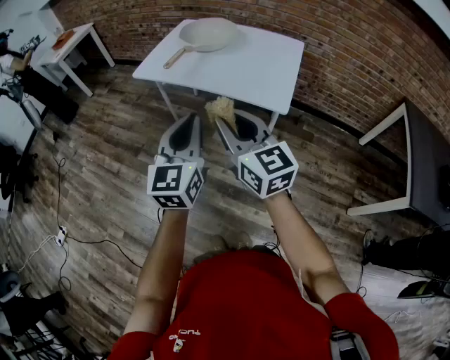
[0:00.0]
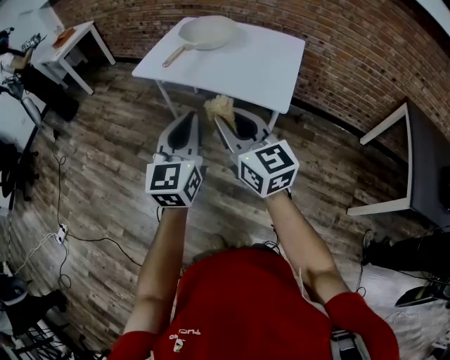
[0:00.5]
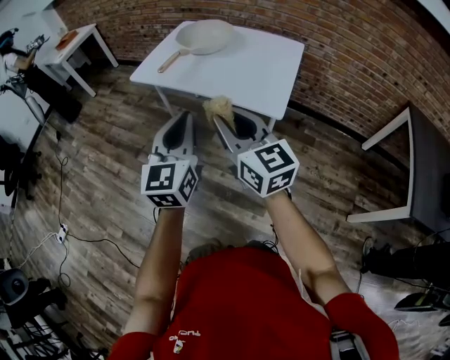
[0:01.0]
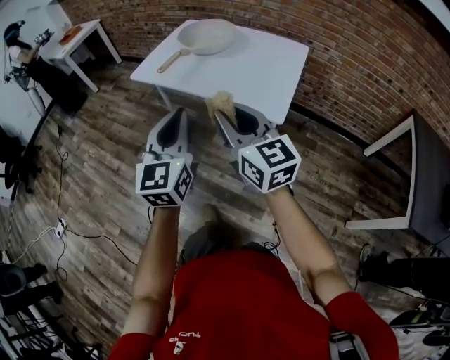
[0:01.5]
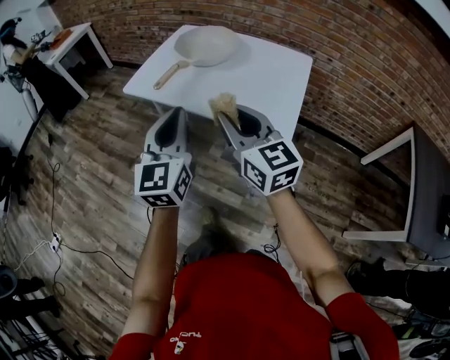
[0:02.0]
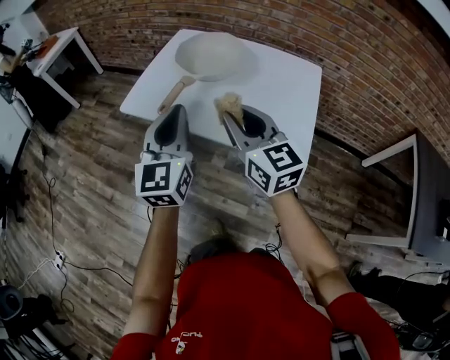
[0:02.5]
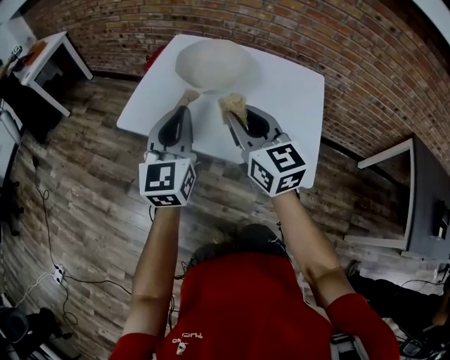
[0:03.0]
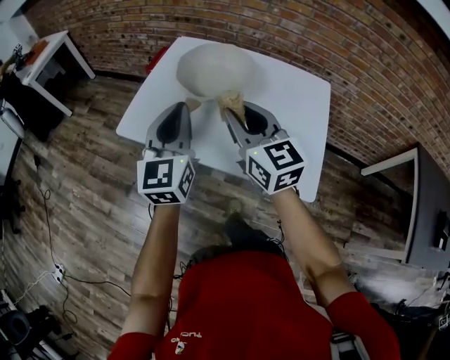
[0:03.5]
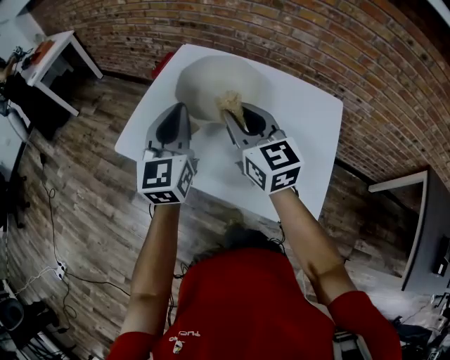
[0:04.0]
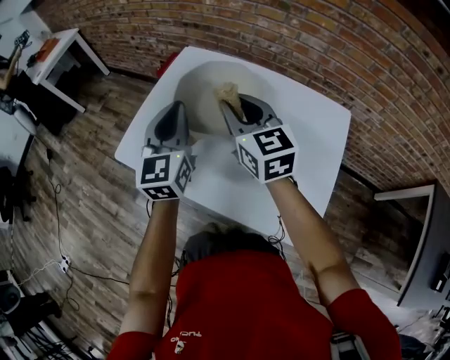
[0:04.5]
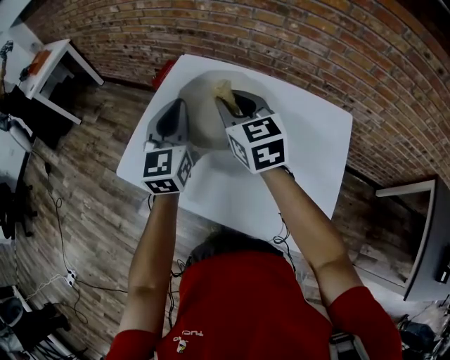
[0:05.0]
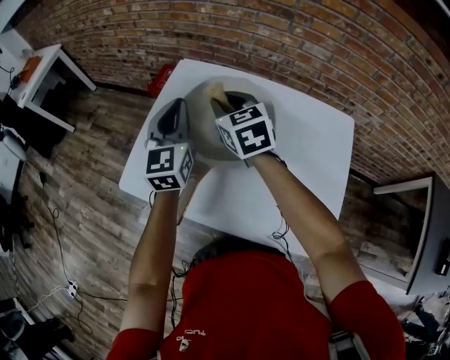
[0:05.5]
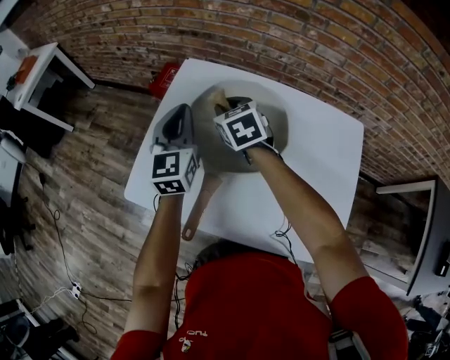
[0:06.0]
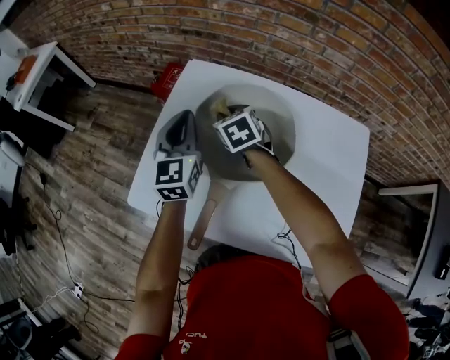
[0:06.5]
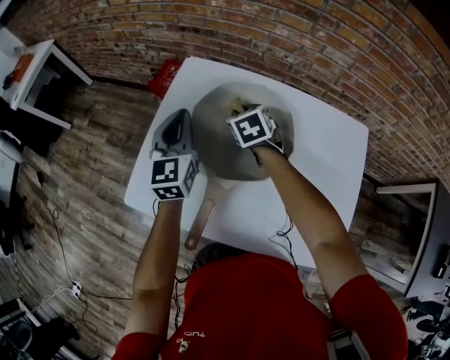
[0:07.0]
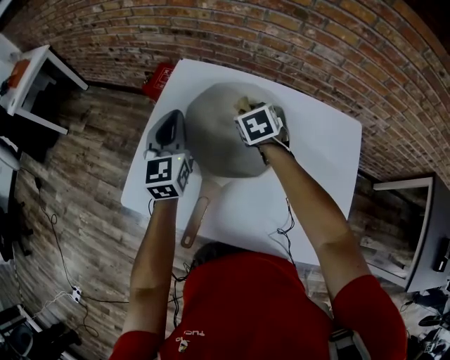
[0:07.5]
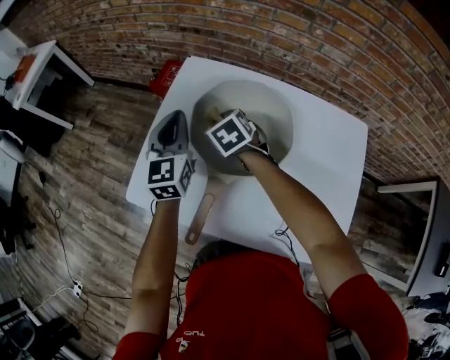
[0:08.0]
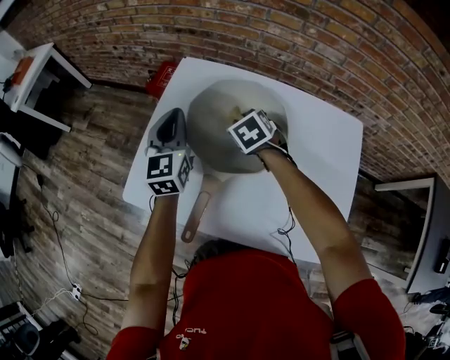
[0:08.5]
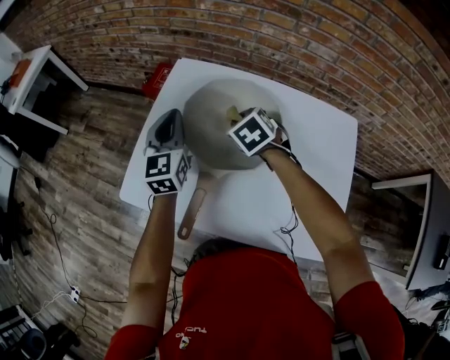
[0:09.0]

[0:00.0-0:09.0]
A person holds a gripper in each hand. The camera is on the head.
0:00.0 to 0:02.0: The right gripper shifts approximately 15 cm forward and to the right. Meanwhile the left gripper goes roughly 15 cm forward.
0:02.0 to 0:04.5: The pair of grippers is taken forward, approximately 40 cm.
0:04.5 to 0:07.0: The right gripper shifts some 30 cm downward and forward, and tips its fingers downward by approximately 40 degrees, while the left gripper heads forward and downward, covering about 20 cm.
0:07.0 to 0:09.0: The right gripper goes left and right, some 10 cm each way, reversing 2 times.

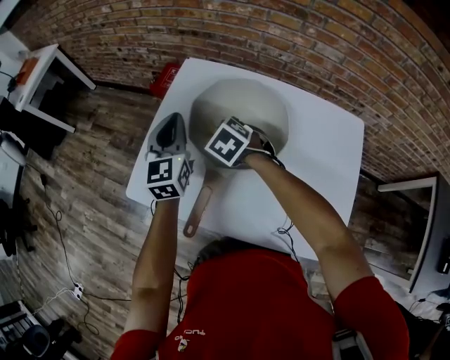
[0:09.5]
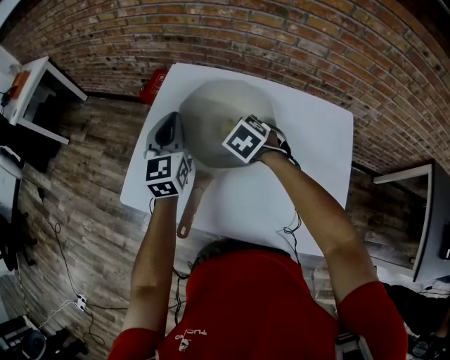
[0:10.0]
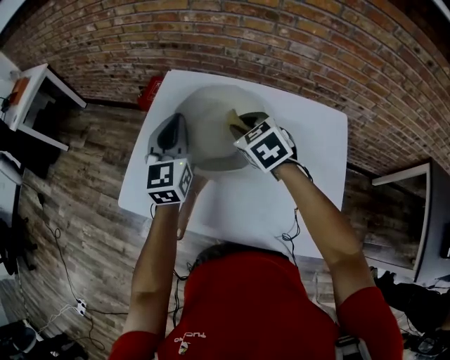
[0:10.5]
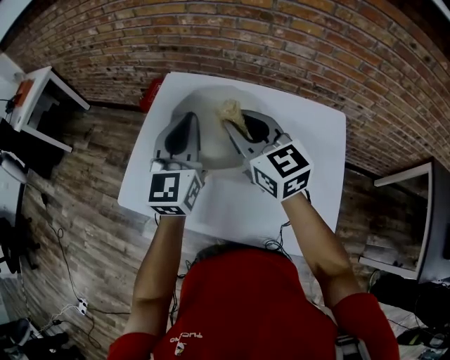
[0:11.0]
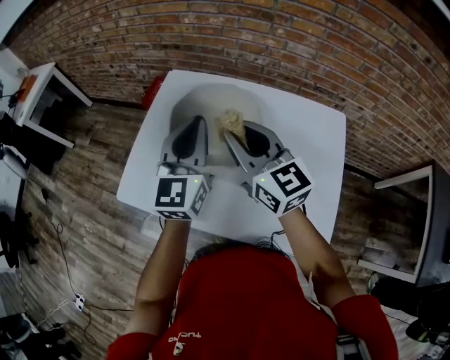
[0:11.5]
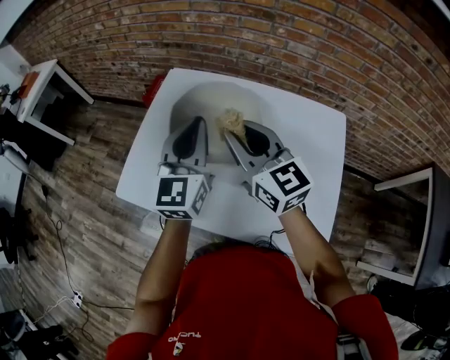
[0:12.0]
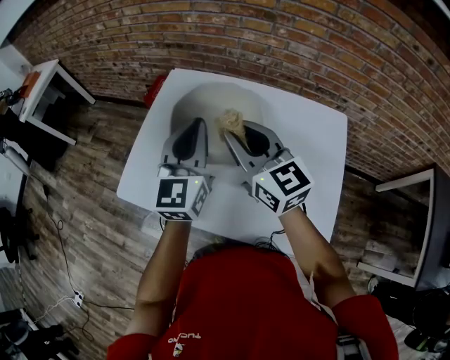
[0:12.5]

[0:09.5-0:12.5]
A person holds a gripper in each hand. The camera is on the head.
0:09.5 to 0:11.0: The left gripper travels to the right, upward and backward by about 15 cm. The right gripper goes about 25 cm upward and to the right, and points its fingers roughly 50 degrees further upward.
0:11.0 to 0:12.5: The grippers stay close to where they were, moving slightly.

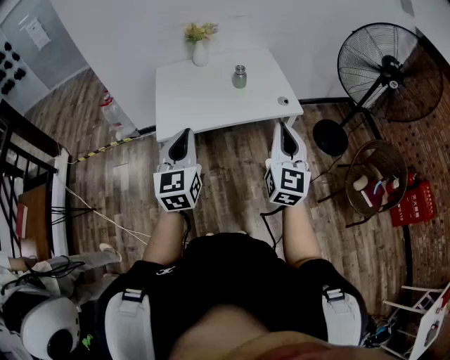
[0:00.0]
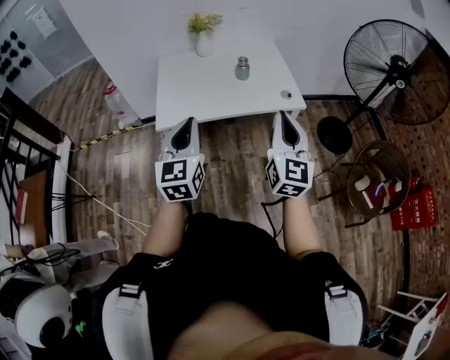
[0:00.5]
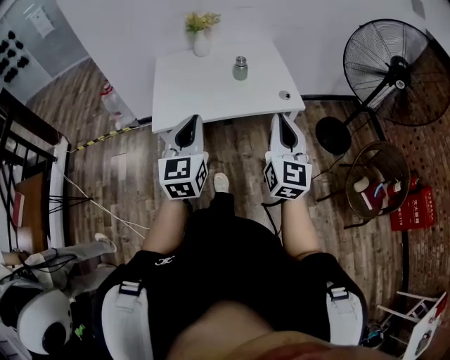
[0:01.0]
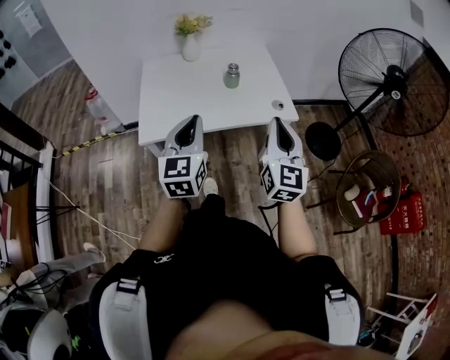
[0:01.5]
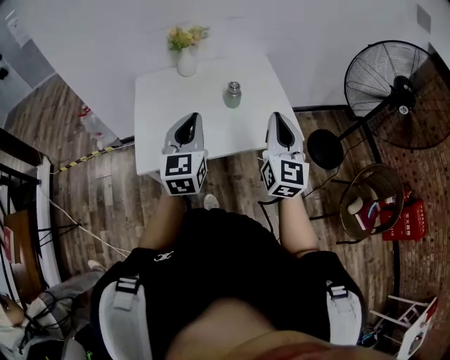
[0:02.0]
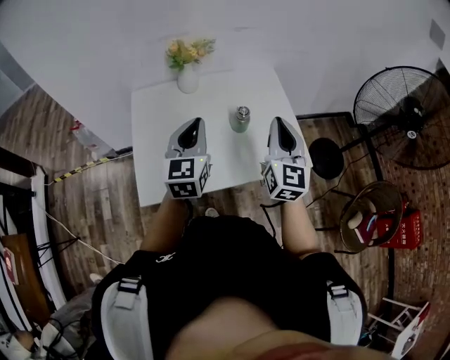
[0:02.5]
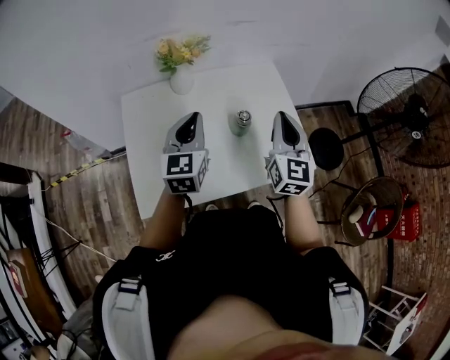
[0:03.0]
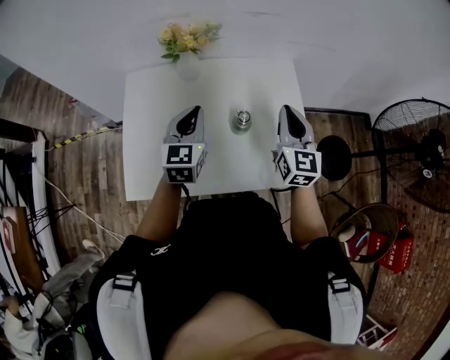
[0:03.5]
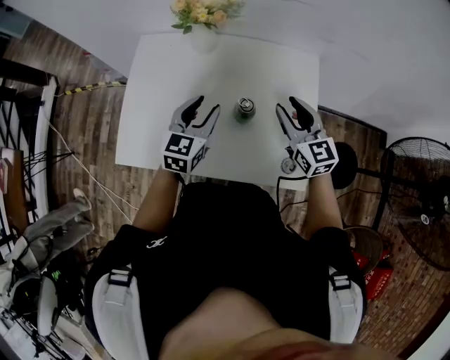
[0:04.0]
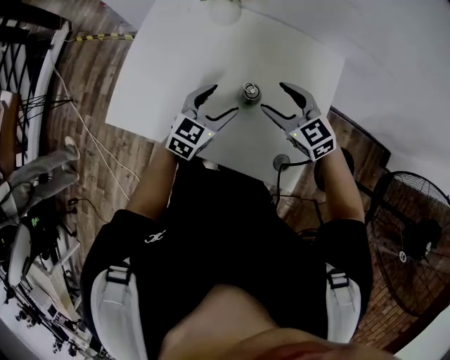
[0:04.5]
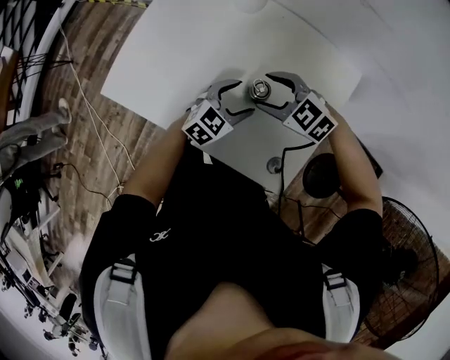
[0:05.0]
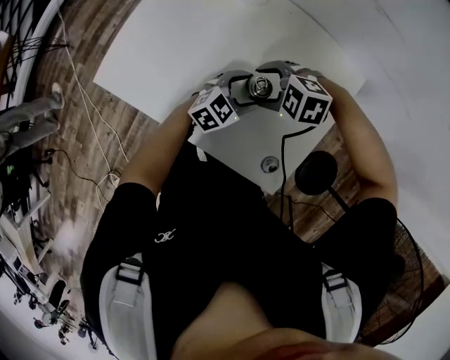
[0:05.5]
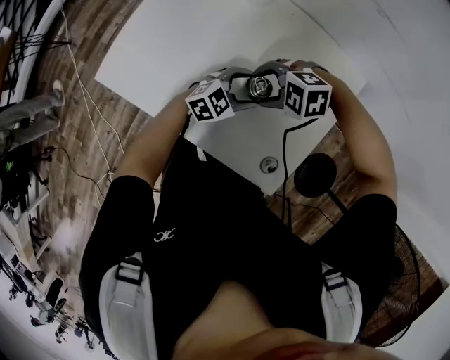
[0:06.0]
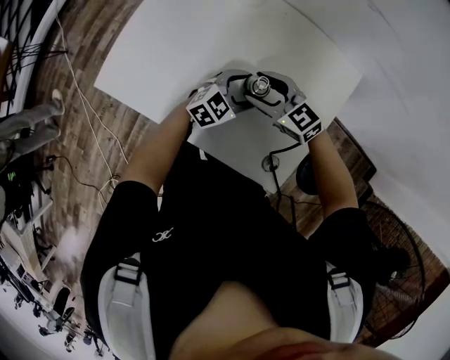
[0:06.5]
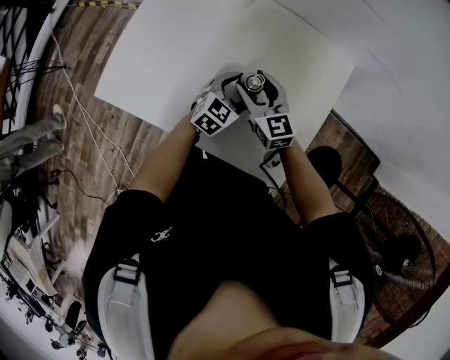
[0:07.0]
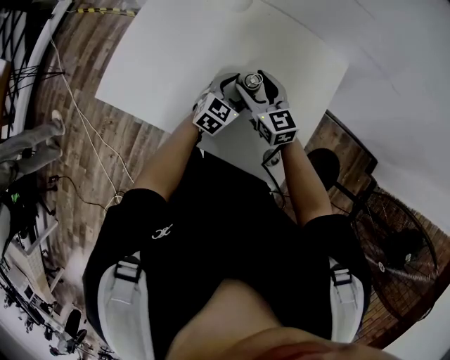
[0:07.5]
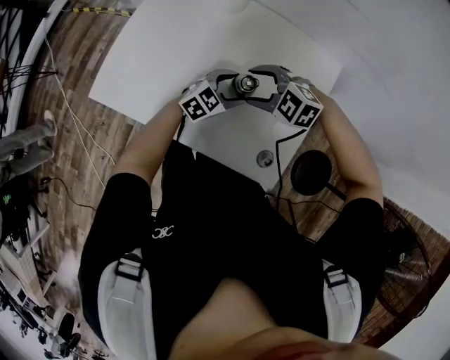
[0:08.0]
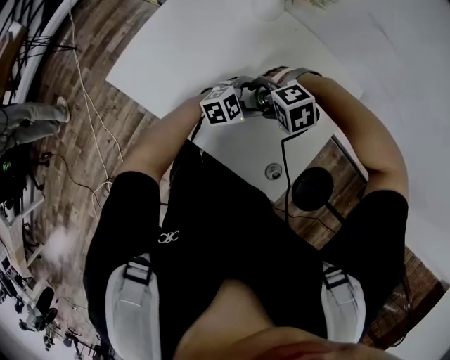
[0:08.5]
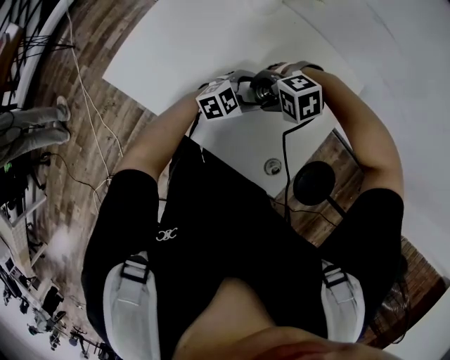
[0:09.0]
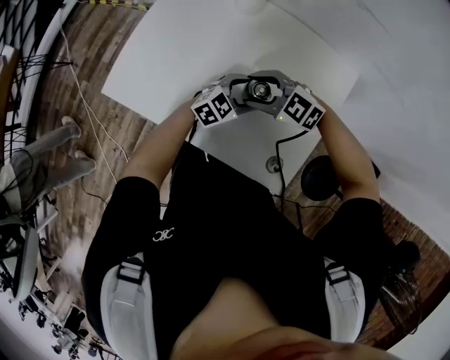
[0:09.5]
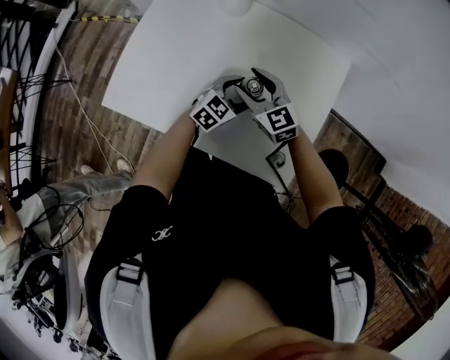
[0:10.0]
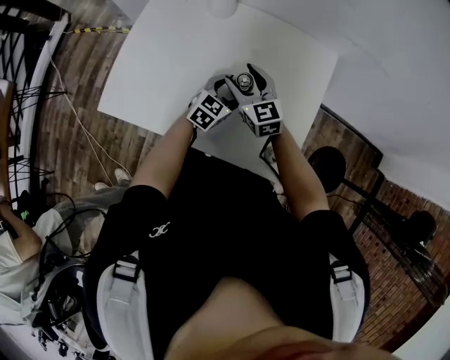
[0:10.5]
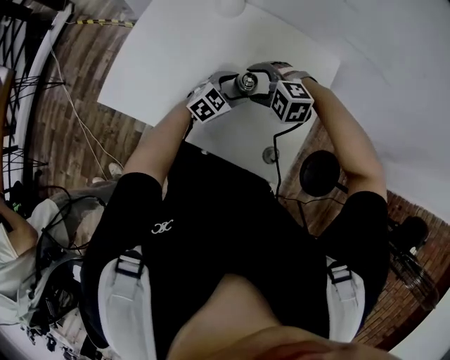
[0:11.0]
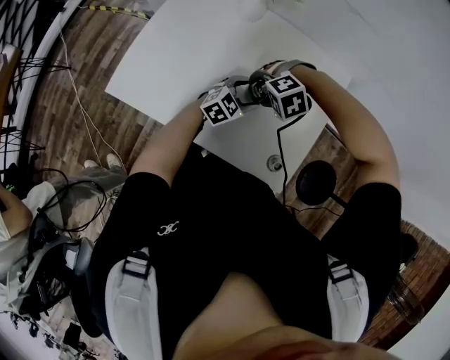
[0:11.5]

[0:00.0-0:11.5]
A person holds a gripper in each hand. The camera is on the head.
0:00.0 to 0:02.0: The grippers both shift forward by some 25 cm.
0:02.0 to 0:04.0: The left gripper ends up about 30 cm from where it was, and opens up, while the right gripper ends up roughly 35 cm from where it was, swivels about 50 degrees, and opens its fingers.
0:04.0 to 0:06.0: The two grippers go approximately 15 cm downward. The right gripper tilts its fingers about 50 degrees downward, and opens its fingers. Meanwhile the left gripper changes its angle by some 30 degrees, and opens its fingers.
0:06.0 to 0:07.5: The left gripper rotates approximately 20 degrees. Meanwhile the right gripper points its fingers approximately 40 degrees further upward.
0:07.5 to 0:09.5: The right gripper changes its angle by roughly 50 degrees.
0:09.5 to 0:11.5: The right gripper changes place by roughly 5 cm, and angles its fingers downward, by approximately 50 degrees. The left gripper ends up roughly 5 cm from where it was.

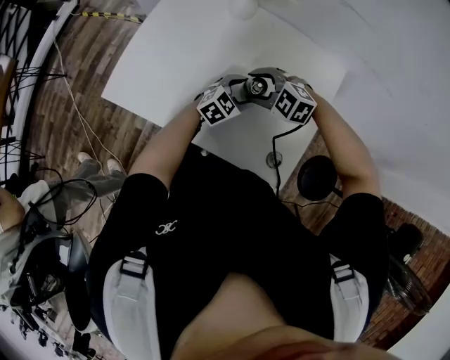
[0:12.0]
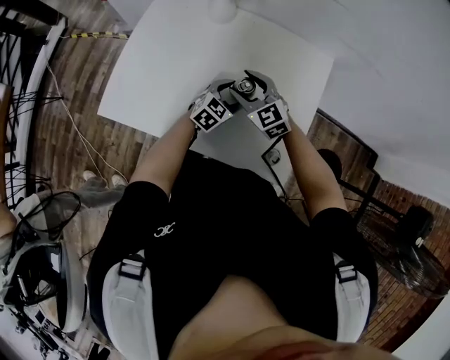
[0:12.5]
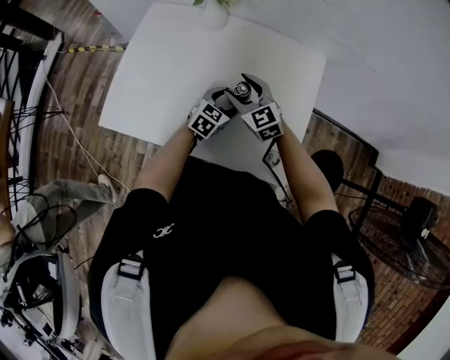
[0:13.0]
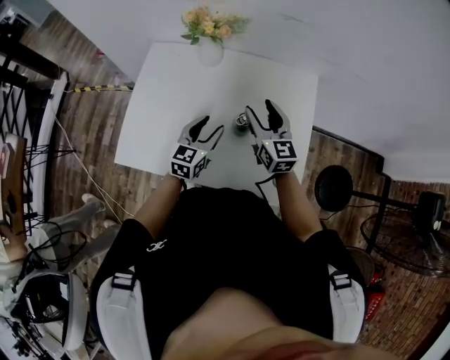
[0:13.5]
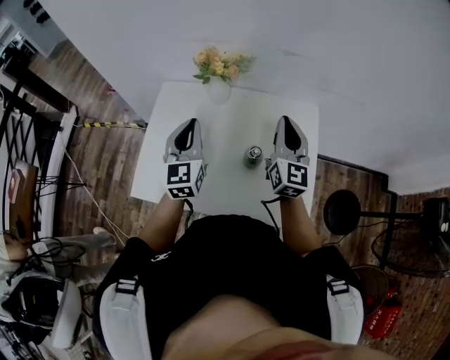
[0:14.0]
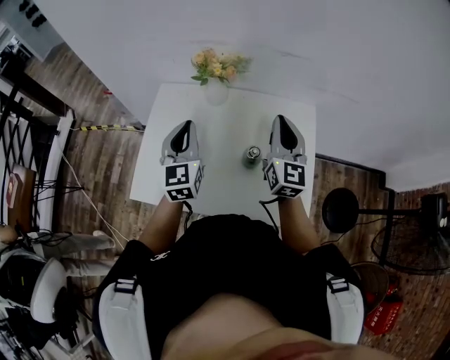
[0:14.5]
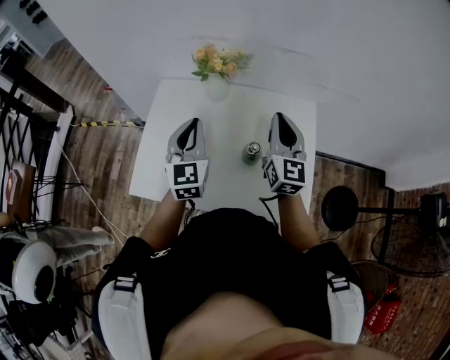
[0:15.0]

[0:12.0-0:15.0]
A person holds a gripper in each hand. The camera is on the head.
0:12.0 to 0:13.5: The right gripper heads upward, covering roughly 10 cm, and angles its fingers upward, by approximately 40 degrees. The left gripper ends up approximately 15 cm from where it was, and turns by approximately 30 degrees.
0:13.5 to 0:15.0: The left gripper goes roughly 20 cm upward and to the left, rotates some 30 degrees, and closes its fingers, while the right gripper goes roughly 10 cm upward, rotates roughly 20 degrees, and closes up.
